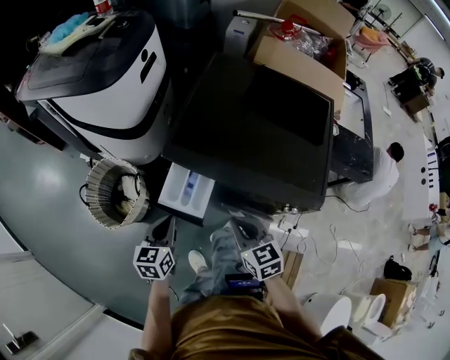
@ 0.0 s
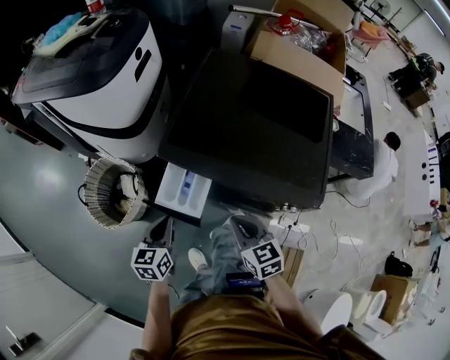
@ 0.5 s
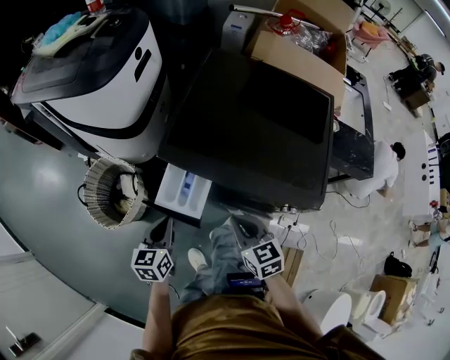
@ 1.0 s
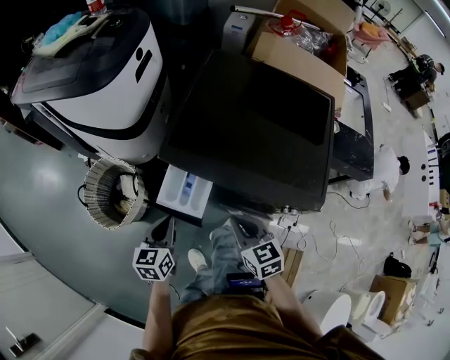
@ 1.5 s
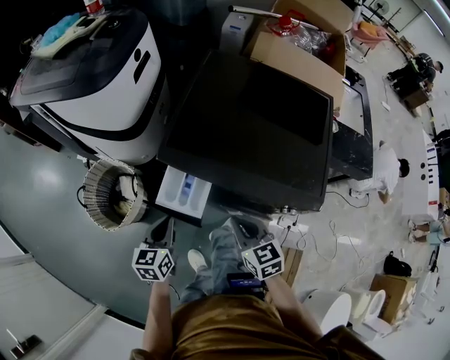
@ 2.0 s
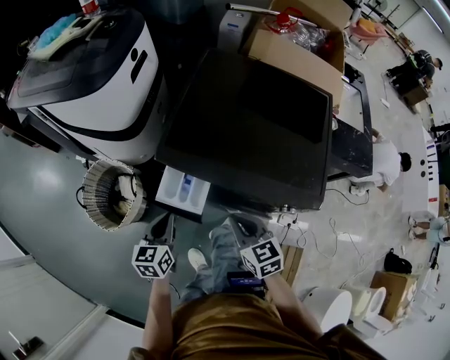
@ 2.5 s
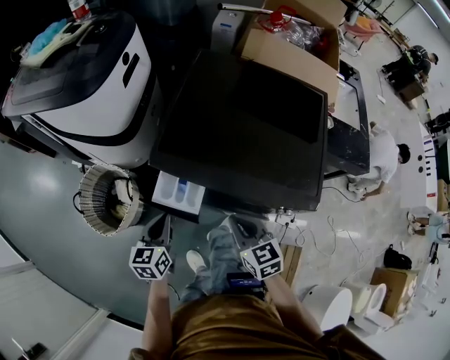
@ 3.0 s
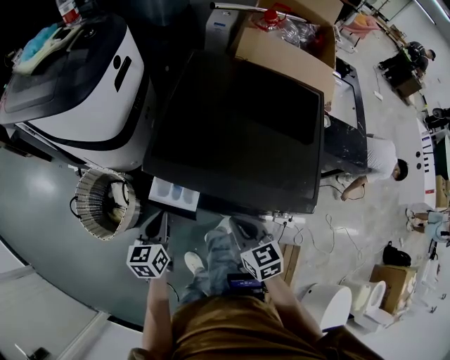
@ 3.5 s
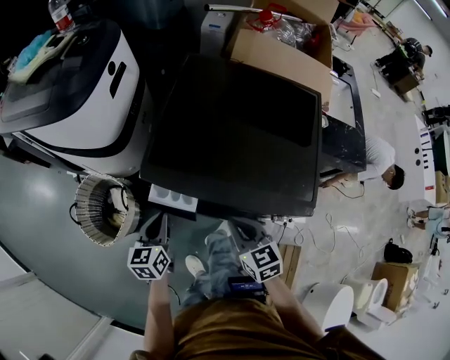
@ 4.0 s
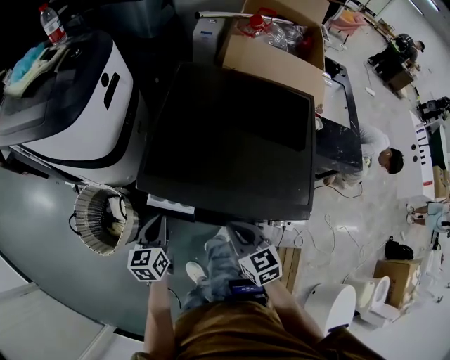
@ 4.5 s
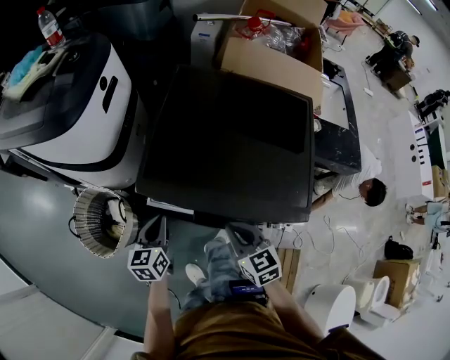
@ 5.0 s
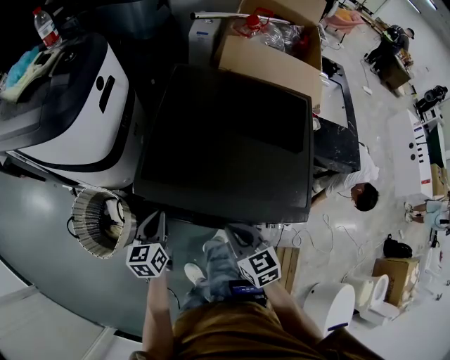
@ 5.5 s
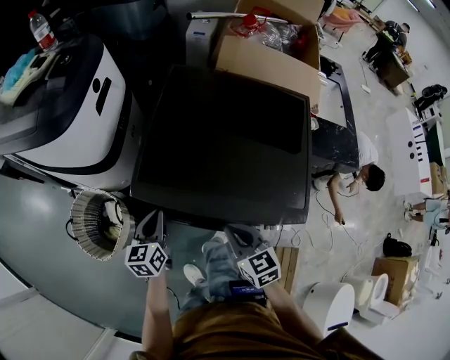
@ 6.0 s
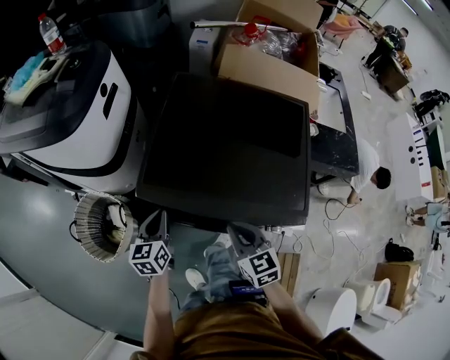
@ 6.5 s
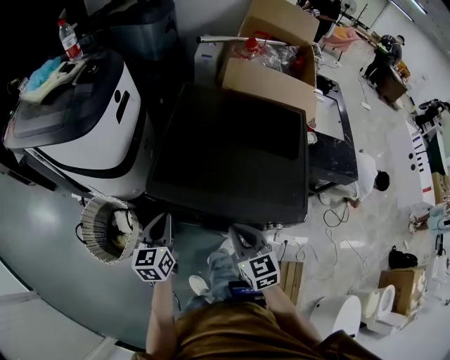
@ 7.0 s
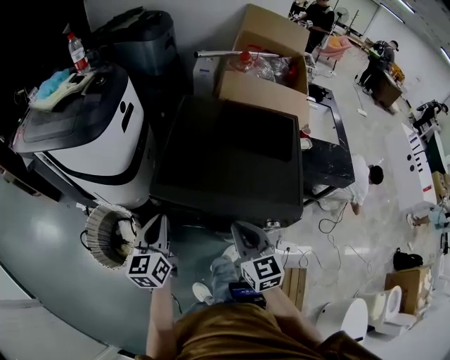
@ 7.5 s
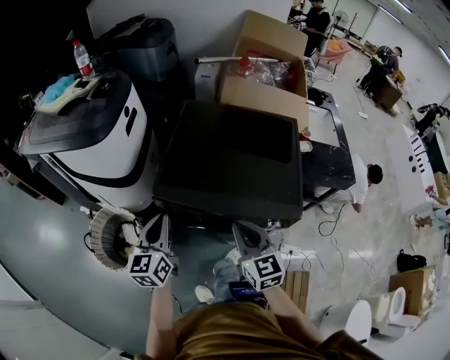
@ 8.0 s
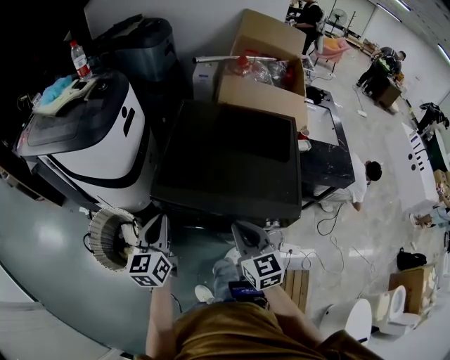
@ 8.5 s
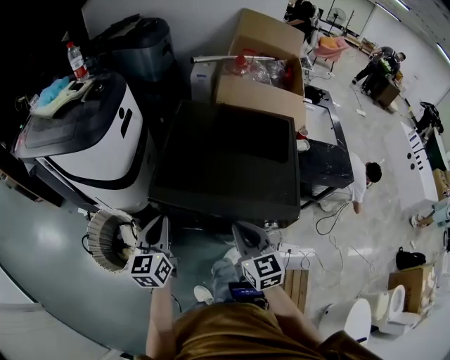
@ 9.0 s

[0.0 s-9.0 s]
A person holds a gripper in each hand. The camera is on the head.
0.0 to 2.0 s: The grippers make only small movements.
2.0 to 4.5 s: The left gripper goes approximately 10 cm forward, while the right gripper shifts by about 5 cm.
4.5 to 7.0 s: Both grippers move upward, about 5 cm.
7.0 to 9.0 s: The grippers both shift upward by roughly 5 cm.

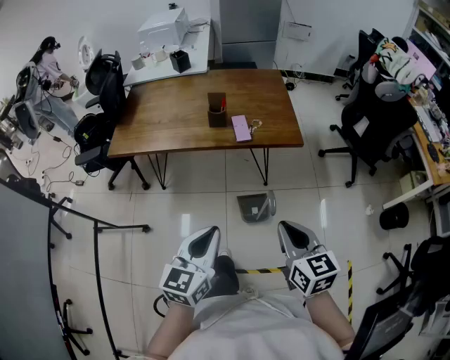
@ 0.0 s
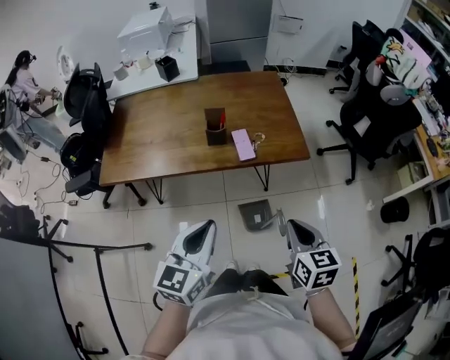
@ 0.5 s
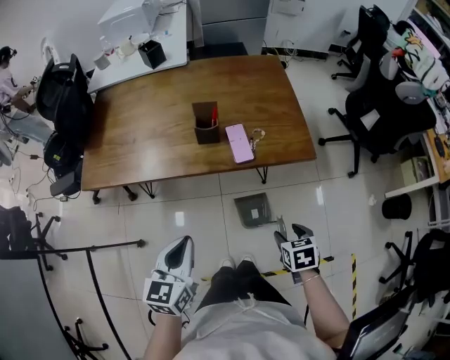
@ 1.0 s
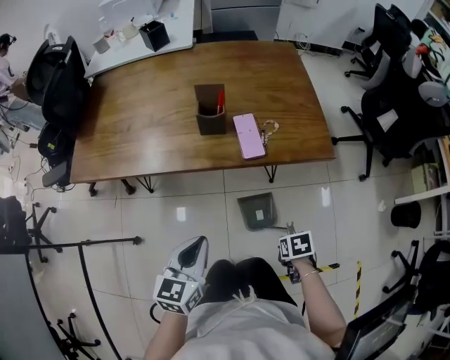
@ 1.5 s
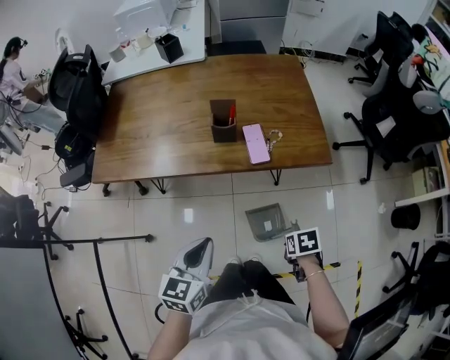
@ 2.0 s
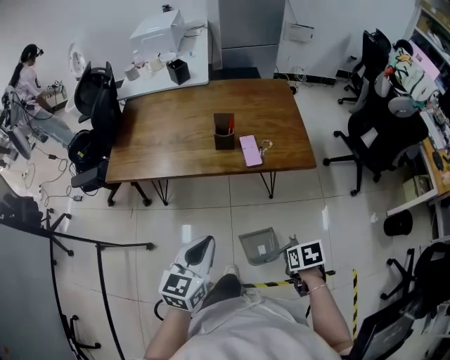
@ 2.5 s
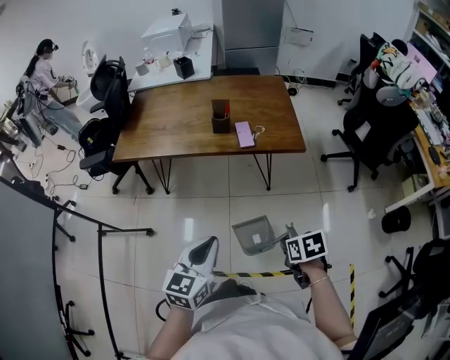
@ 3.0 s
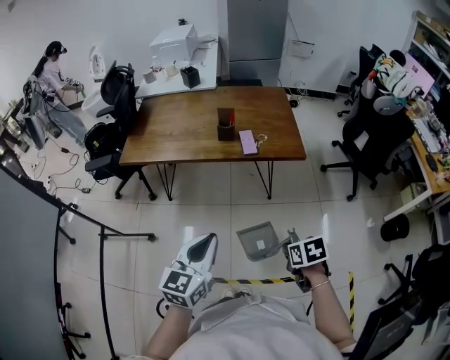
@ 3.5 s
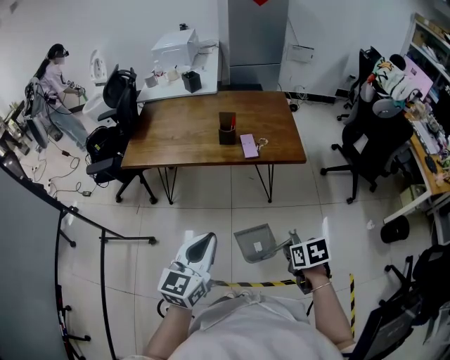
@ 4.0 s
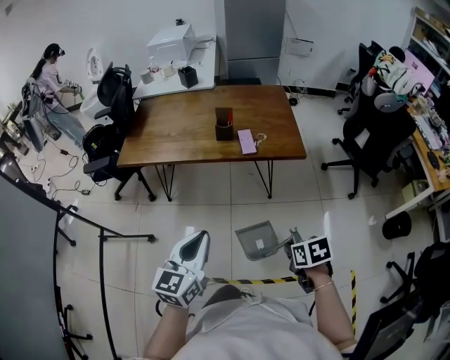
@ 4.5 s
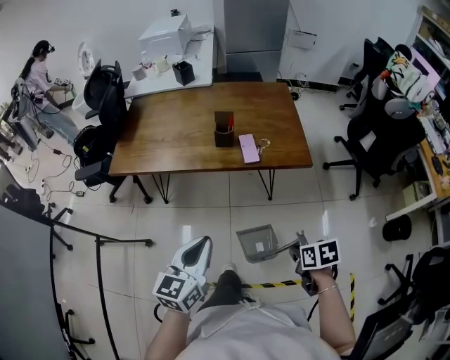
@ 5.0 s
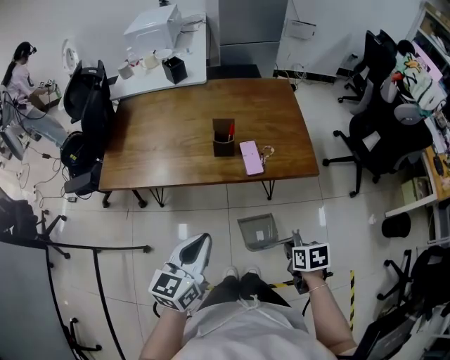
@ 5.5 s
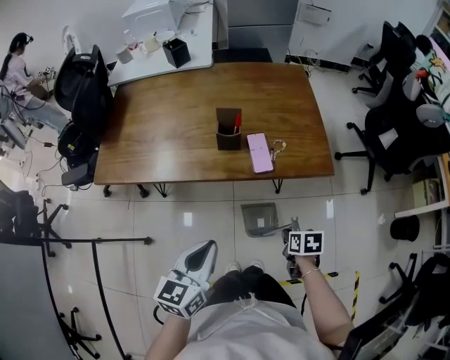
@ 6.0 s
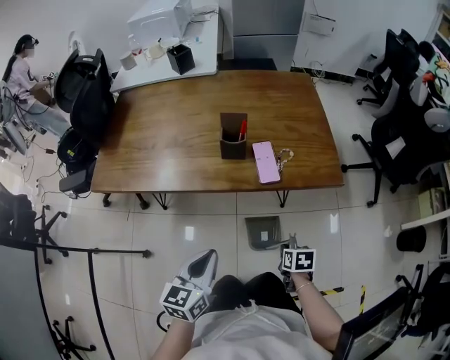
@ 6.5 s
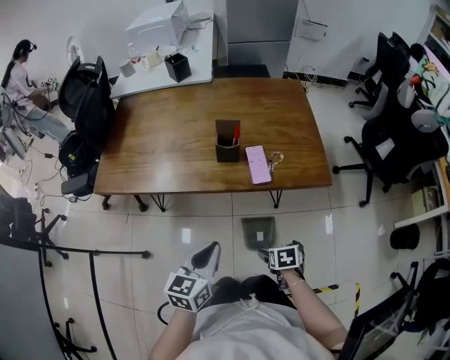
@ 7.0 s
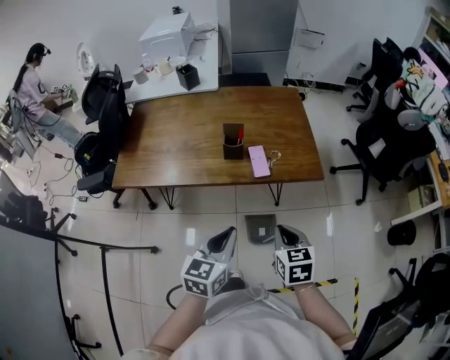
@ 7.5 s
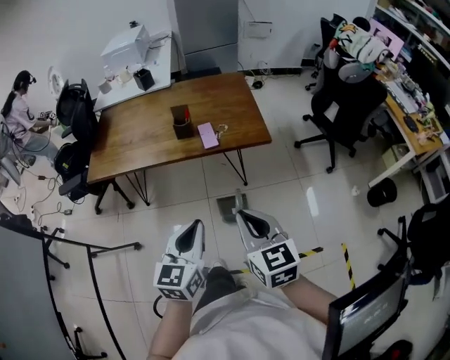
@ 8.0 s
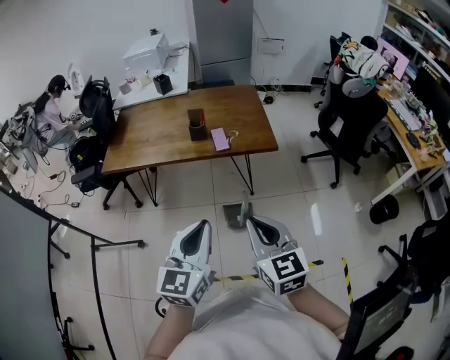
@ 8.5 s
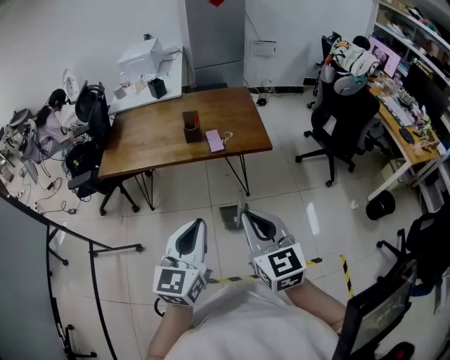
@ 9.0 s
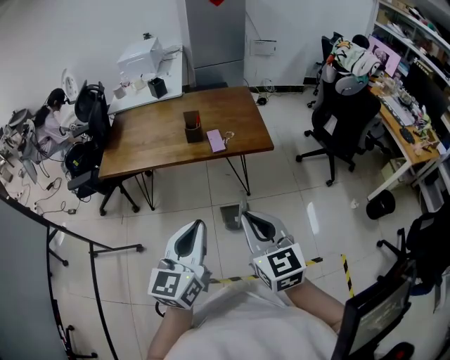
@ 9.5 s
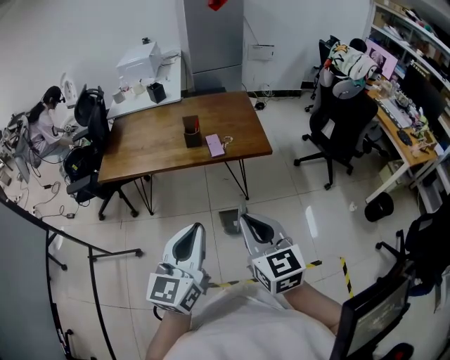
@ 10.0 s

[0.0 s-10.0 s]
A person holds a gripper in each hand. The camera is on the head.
0.0 to 2.0 s: The right gripper shifts some 30 cm downward, tilts its fingers some 50 degrees downward, and opens and closes again. Meanwhile the left gripper shifts by about 20 cm.
2.0 to 4.0 s: The left gripper ends up about 25 cm from where it was, while the right gripper moves about 25 cm.
4.0 to 6.0 s: Both grippers move forward and downward, approximately 25 cm.
6.0 to 8.0 s: The left gripper is displaced backward, upward and to the right by some 20 cm; the right gripper is displaced upward and backward by approximately 35 cm, points its fingers about 40 degrees further upward, and opens, then closes again.
8.0 to 10.0 s: The left gripper heads upward and backward, covering about 15 cm. Meanwhile the right gripper moves backward and upward, roughly 10 cm.

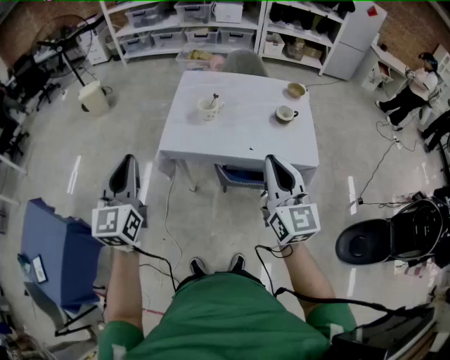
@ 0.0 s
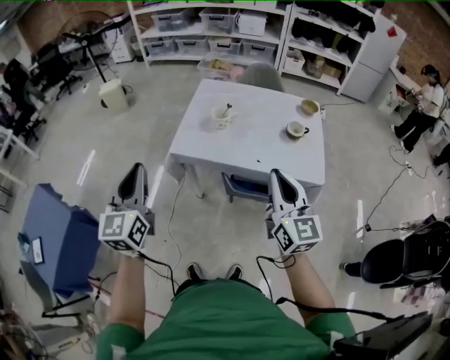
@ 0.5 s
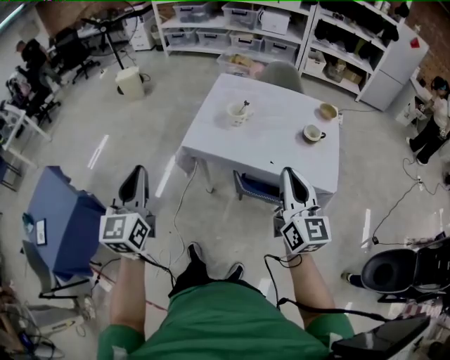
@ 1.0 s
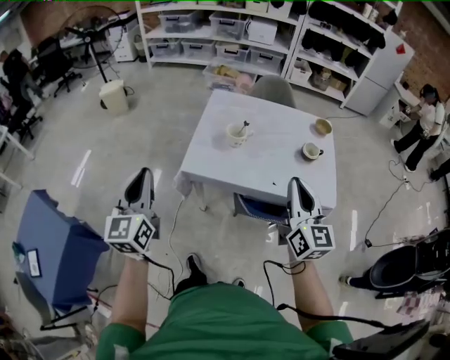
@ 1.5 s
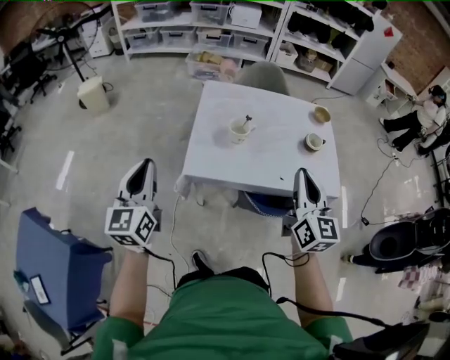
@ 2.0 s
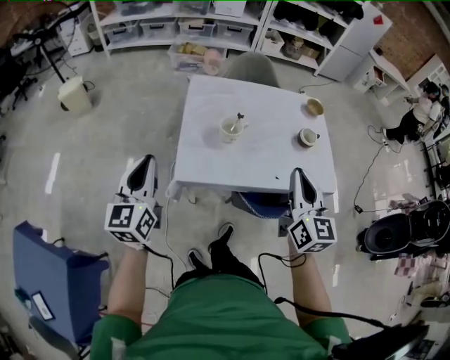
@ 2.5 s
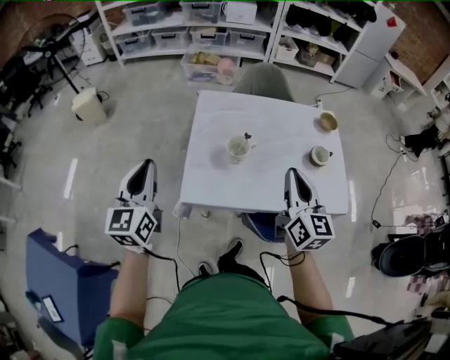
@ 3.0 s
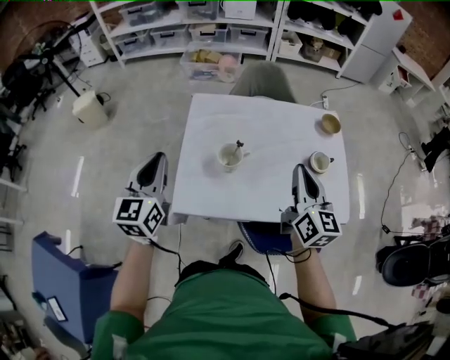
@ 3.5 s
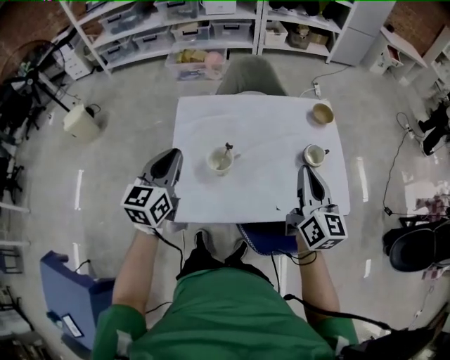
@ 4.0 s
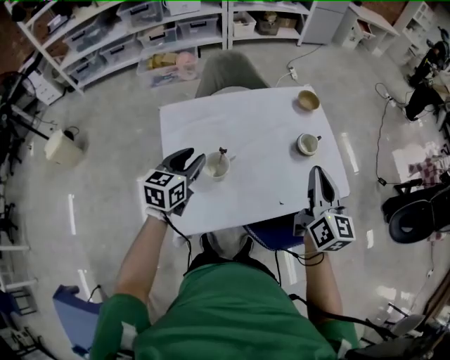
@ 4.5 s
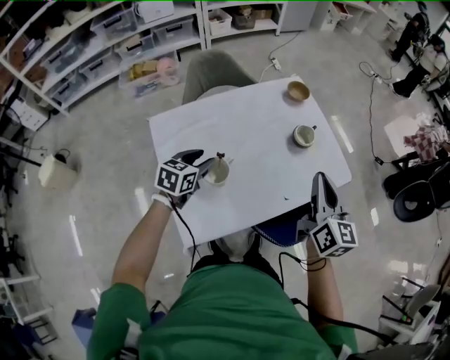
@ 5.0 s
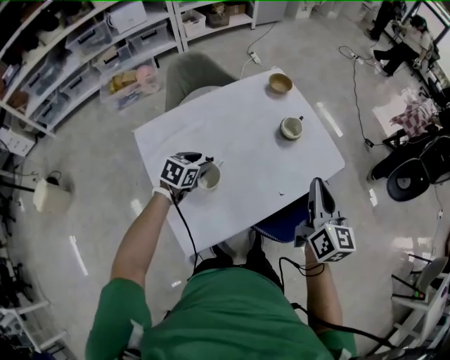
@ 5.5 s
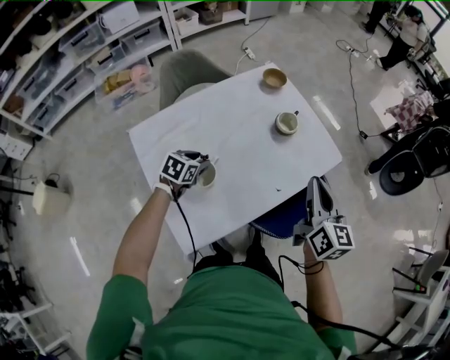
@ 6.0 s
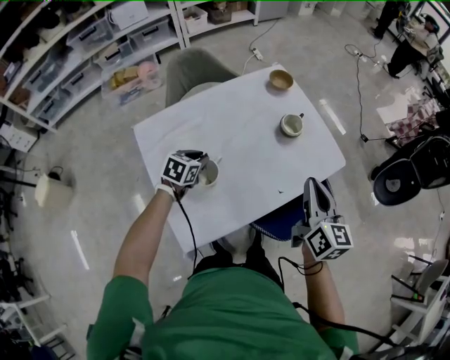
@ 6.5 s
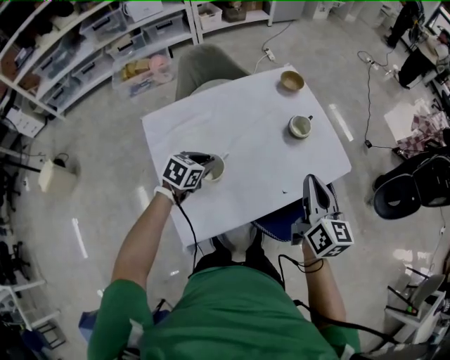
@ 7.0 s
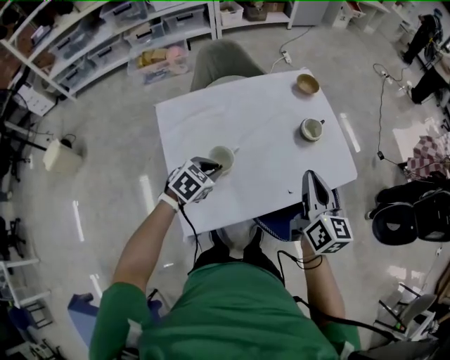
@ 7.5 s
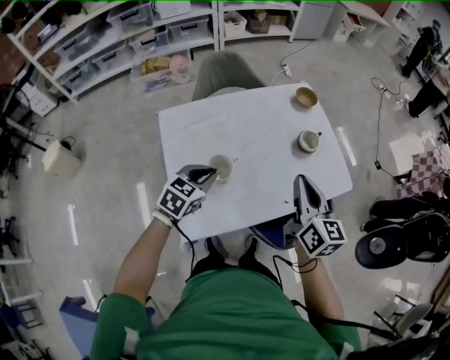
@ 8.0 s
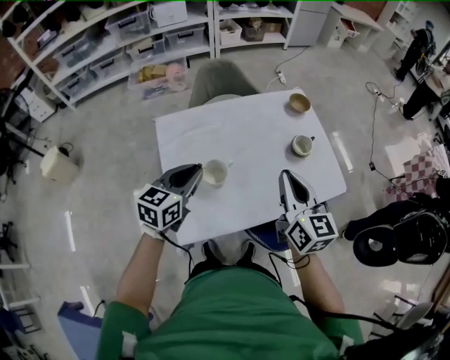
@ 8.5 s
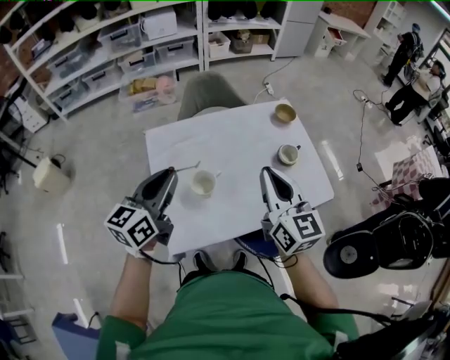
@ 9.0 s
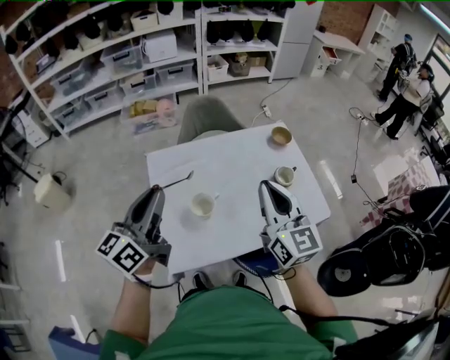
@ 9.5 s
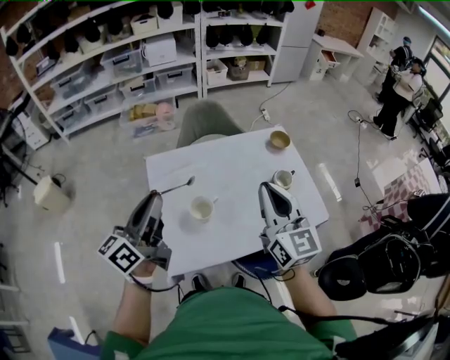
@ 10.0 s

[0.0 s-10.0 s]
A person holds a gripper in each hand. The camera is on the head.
0.0 to 2.0 s: The grippers both shift forward and to the left by about 25 cm.
2.0 to 4.0 s: The two grippers go roughly 35 cm forward and to the right. The left gripper changes its angle by roughly 20 degrees.
4.0 to 6.0 s: The right gripper shifts by some 10 cm, and changes its angle by some 30 degrees; the left gripper moves downward, roughly 25 cm, points its fingers approximately 40 degrees further downward, and opens.
6.0 to 8.0 s: The left gripper travels upward and backward by about 15 cm, and closes up, while the right gripper heads to the left, covering about 10 cm.
8.0 to 10.0 s: The left gripper shifts roughly 25 cm upward, and tilts its fingers roughly 50 degrees upward; the right gripper heads upward and to the left, covering some 15 cm, and changes its angle by approximately 20 degrees.
